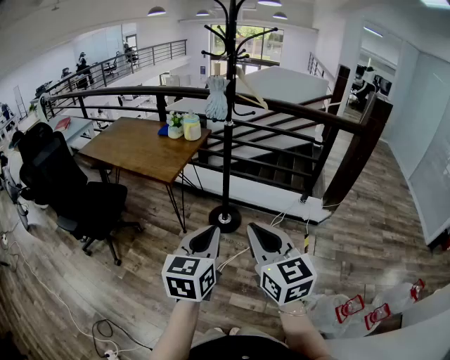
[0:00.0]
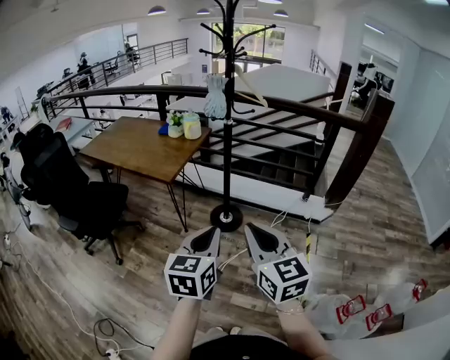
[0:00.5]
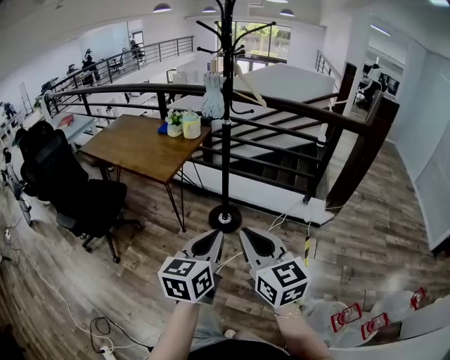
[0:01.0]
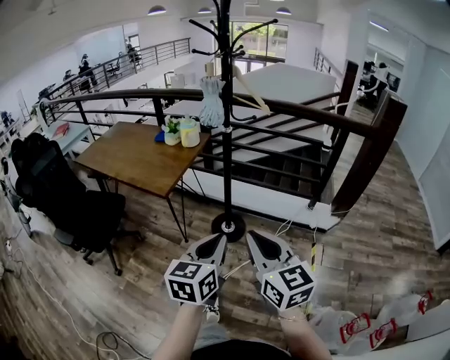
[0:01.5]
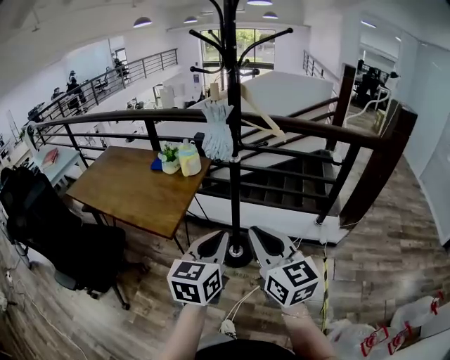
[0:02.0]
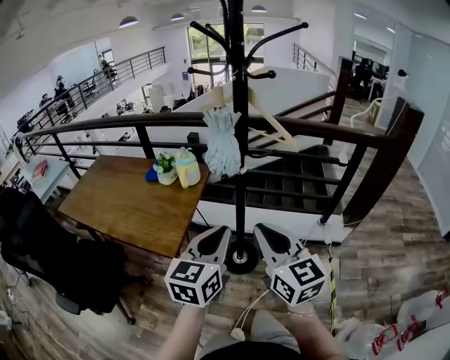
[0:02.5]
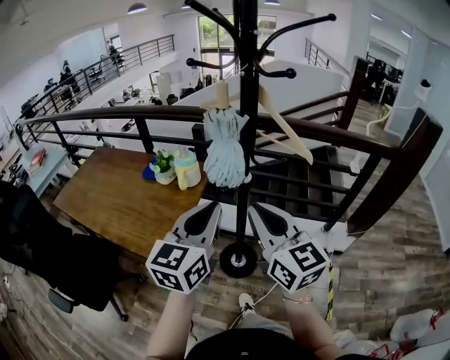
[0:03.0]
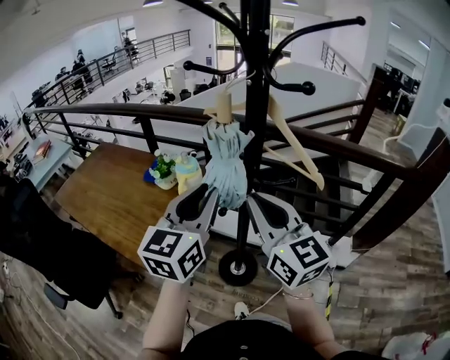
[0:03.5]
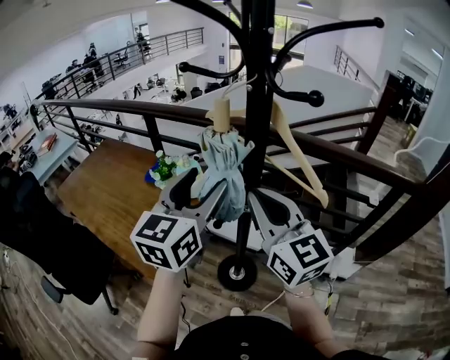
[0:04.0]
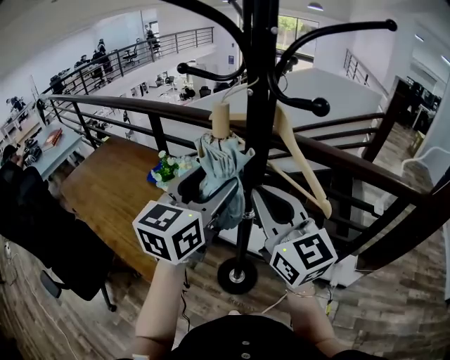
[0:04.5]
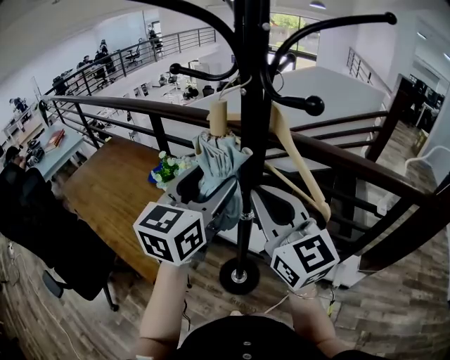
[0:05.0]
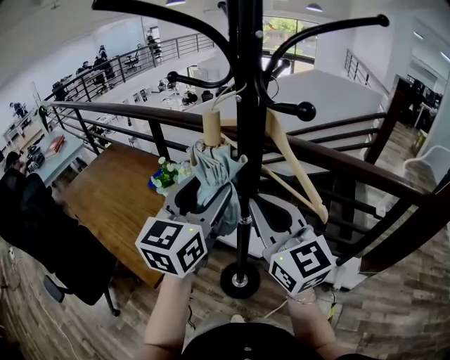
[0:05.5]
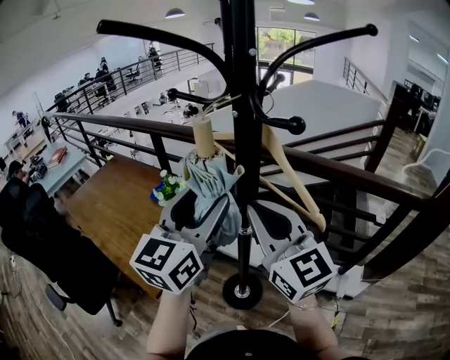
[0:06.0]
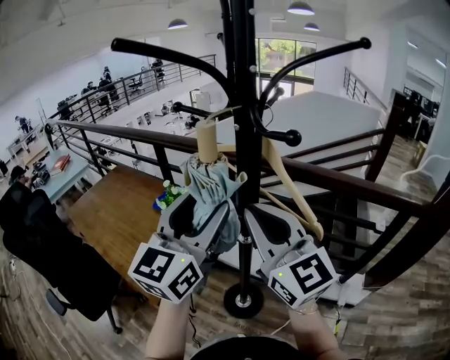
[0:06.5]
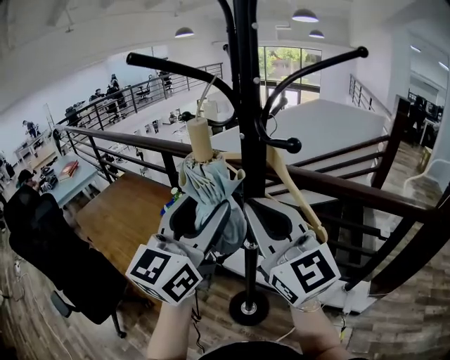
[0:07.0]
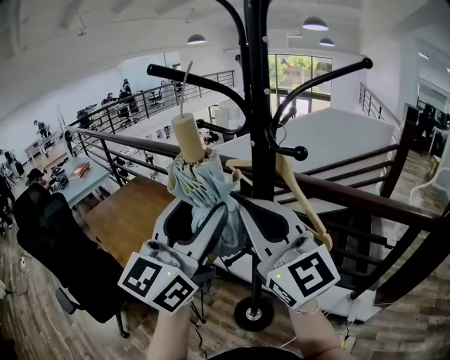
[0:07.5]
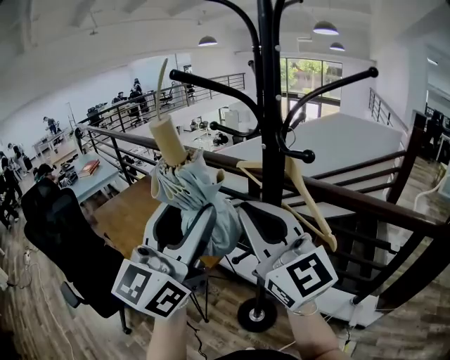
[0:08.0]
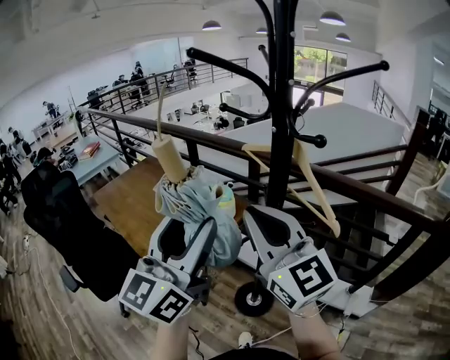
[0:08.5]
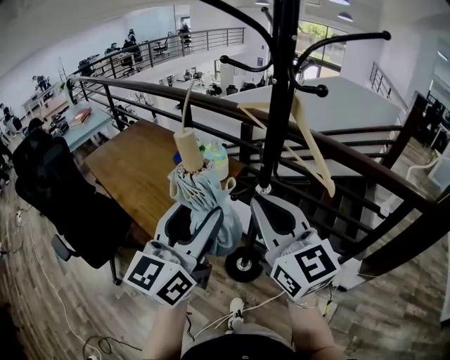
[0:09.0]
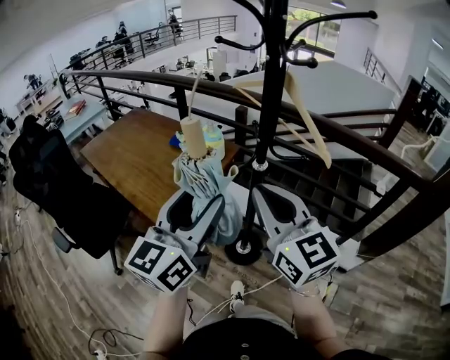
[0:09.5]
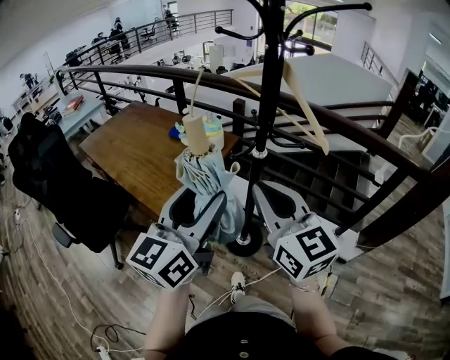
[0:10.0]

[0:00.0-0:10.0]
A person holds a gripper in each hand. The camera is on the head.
0:00.0 to 0:02.0: Both grippers travel together forward, about 25 cm.
0:02.0 to 0:04.0: The two grippers go some 35 cm forward. The left gripper opens its fingers.
0:04.0 to 0:06.0: There are only small adjustments of the grippers.
0:06.0 to 0:08.0: The right gripper moves upward and to the left, roughly 10 cm. The left gripper goes roughly 15 cm upward, backward and to the left.
0:08.0 to 0:10.0: The two grippers go roughly 20 cm downward and backward. The right gripper changes its angle by some 20 degrees. The left gripper turns by roughly 20 degrees.

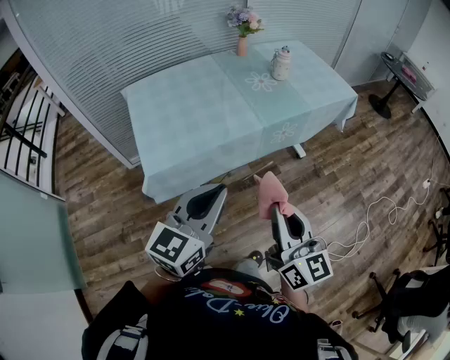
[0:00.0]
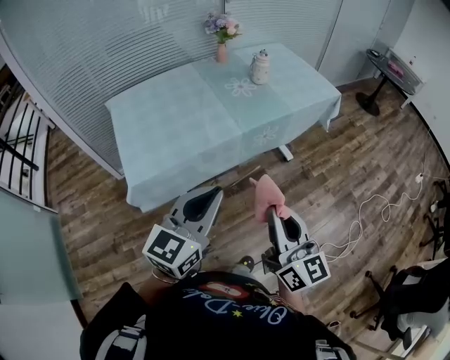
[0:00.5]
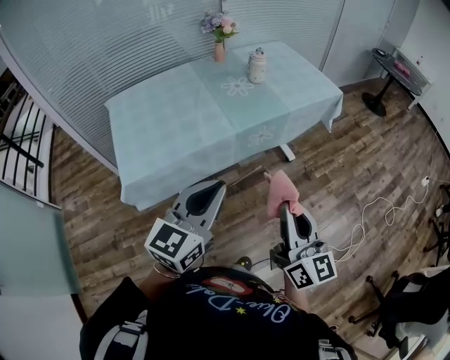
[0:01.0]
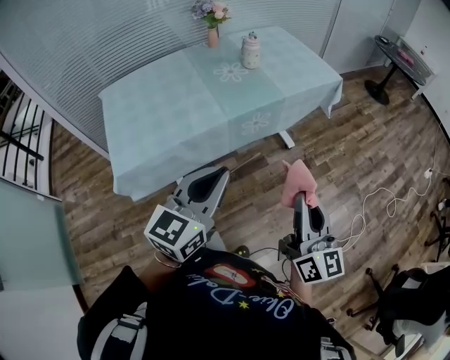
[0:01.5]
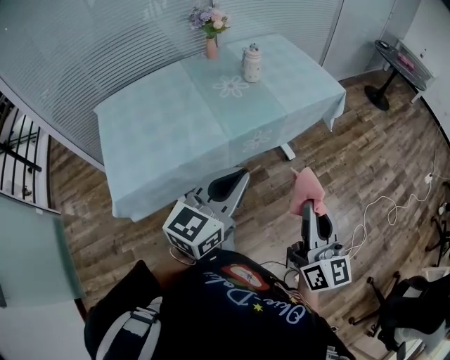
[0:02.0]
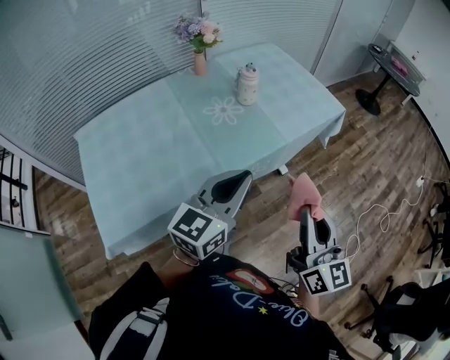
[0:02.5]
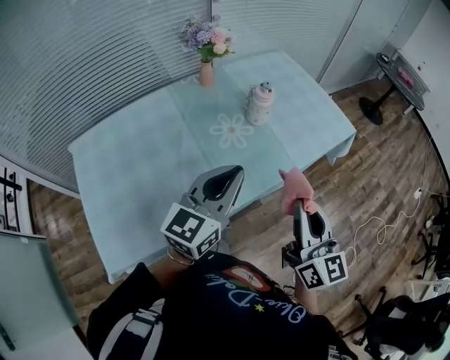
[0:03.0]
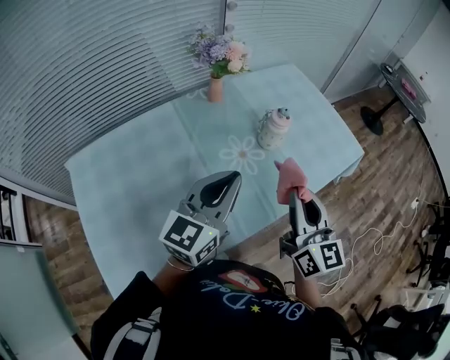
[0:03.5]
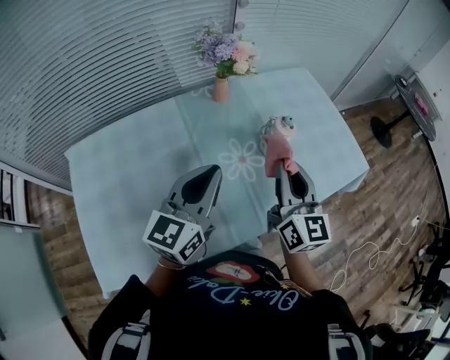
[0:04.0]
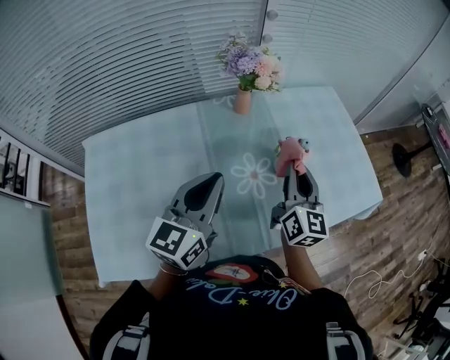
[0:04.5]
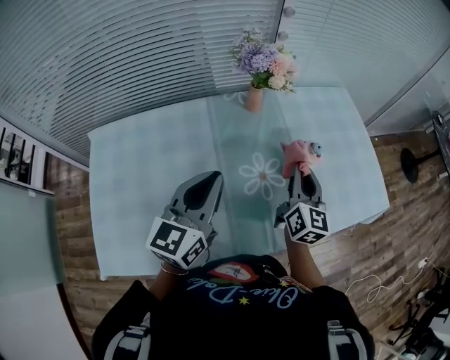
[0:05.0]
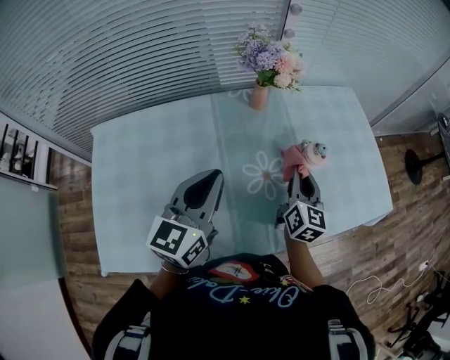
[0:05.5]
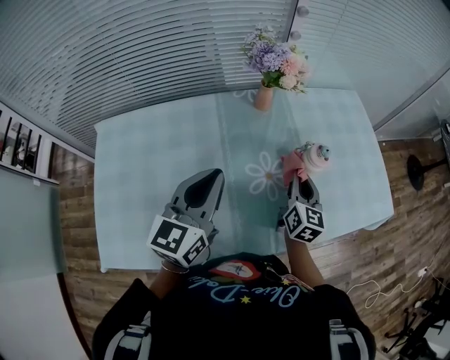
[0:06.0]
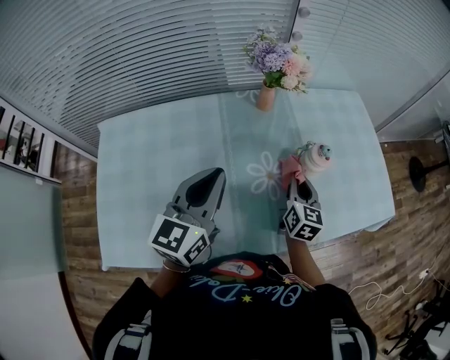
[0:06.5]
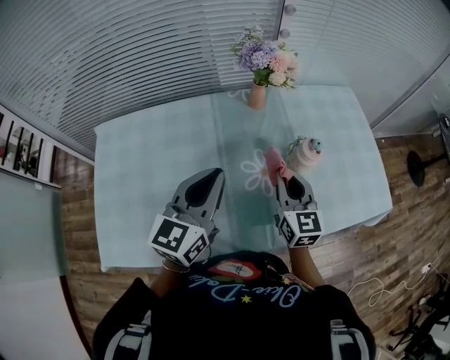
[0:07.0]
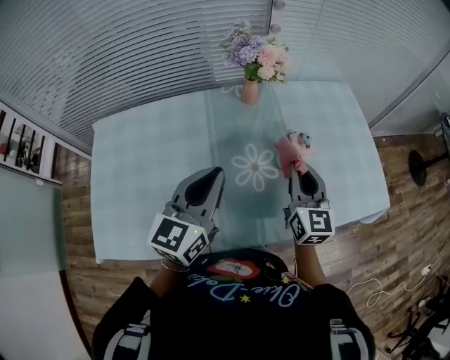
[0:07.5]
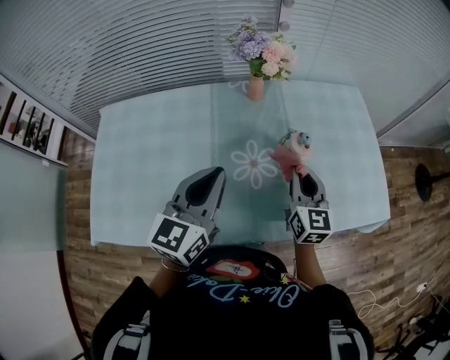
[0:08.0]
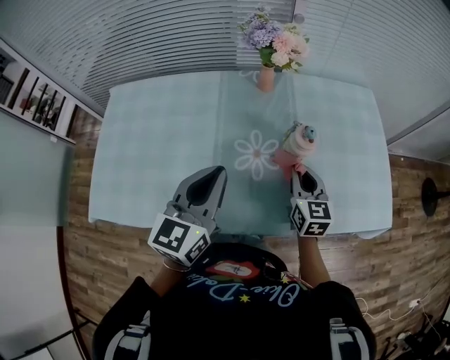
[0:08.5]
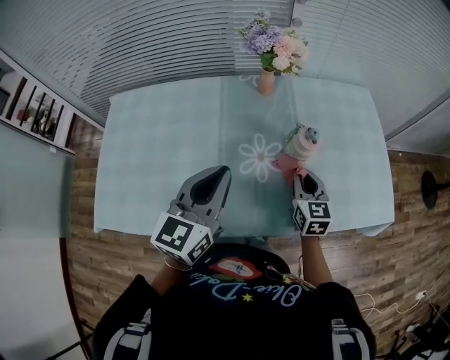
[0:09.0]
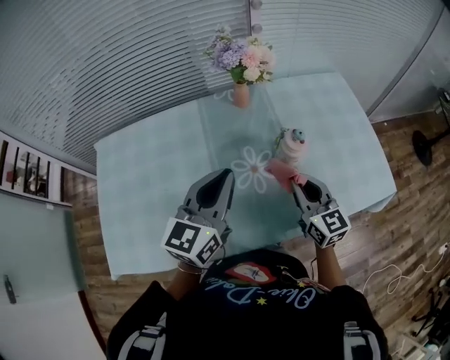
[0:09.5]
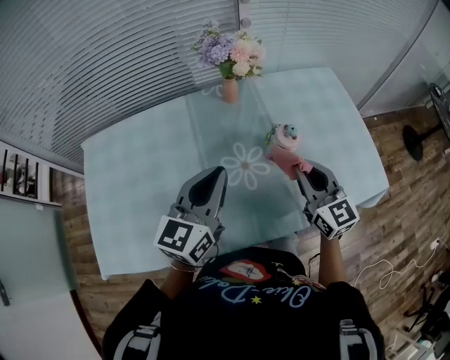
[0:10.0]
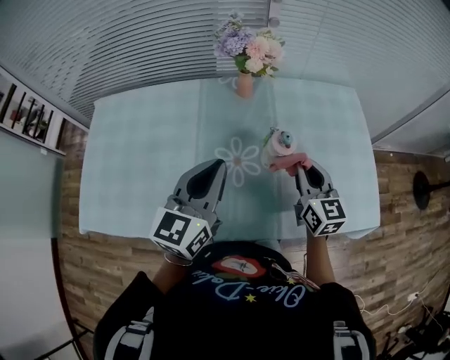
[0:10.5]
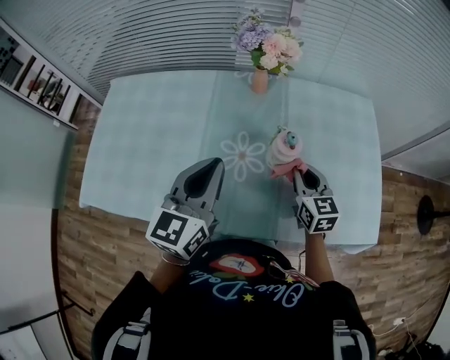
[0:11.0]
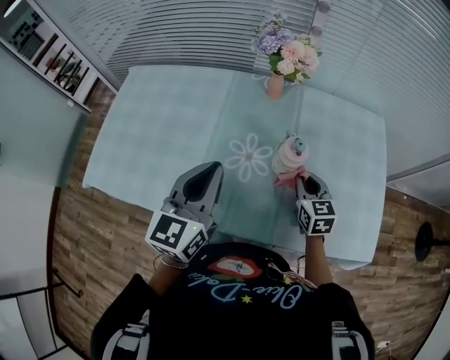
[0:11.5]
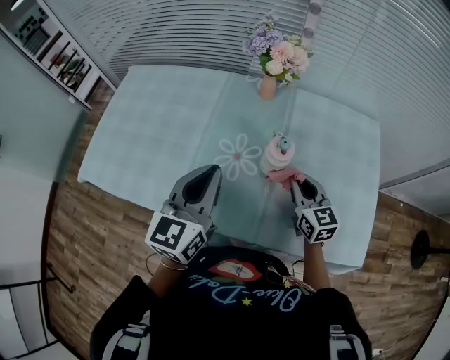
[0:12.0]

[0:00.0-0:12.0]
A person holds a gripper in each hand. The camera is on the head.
0:00.0 to 0:02.0: Both grippers move to the right and forward, some 20 cm.
0:02.0 to 0:04.0: The two grippers travel together, forward and to the left, roughly 50 cm.
0:04.0 to 0:06.0: The left gripper ends up approximately 5 cm from where it was. The right gripper travels downward and forward by some 15 cm.
0:06.0 to 0:08.0: The right gripper changes place by about 5 cm, and turns by roughly 20 degrees. The left gripper goes roughly 10 cm to the right.
0:08.0 to 0:10.0: The right gripper goes downward and returns, some 5 cm each way.
0:10.0 to 0:12.0: The right gripper shifts about 10 cm downward, and changes its angle by approximately 20 degrees. The left gripper ends up approximately 10 cm from where it was, and turns by approximately 30 degrees.

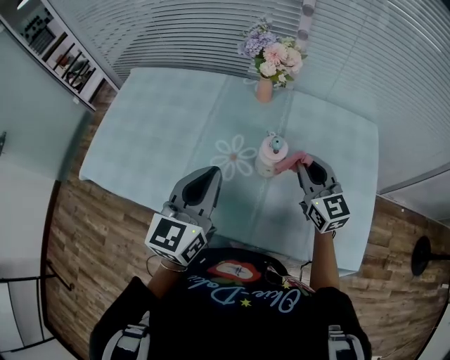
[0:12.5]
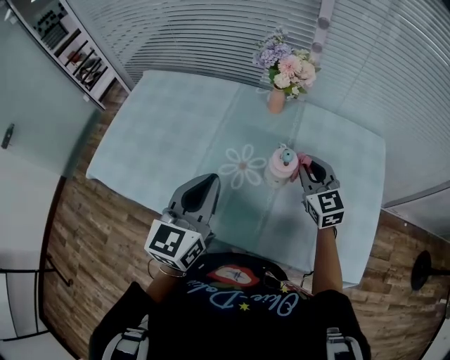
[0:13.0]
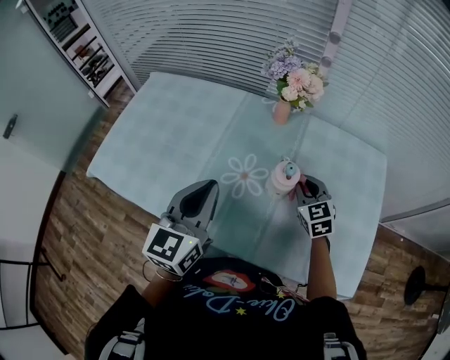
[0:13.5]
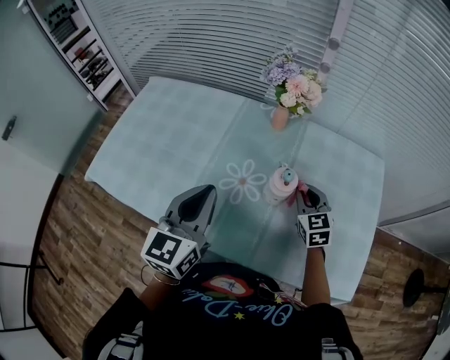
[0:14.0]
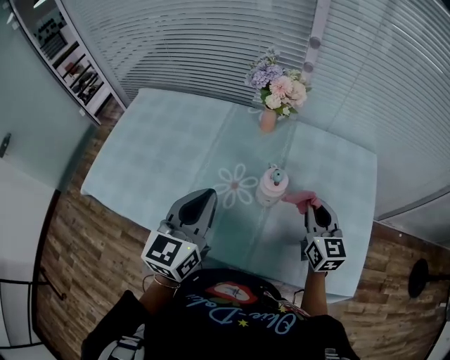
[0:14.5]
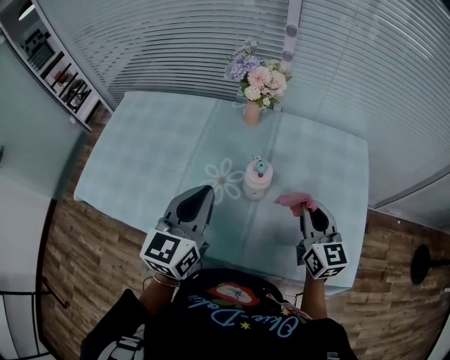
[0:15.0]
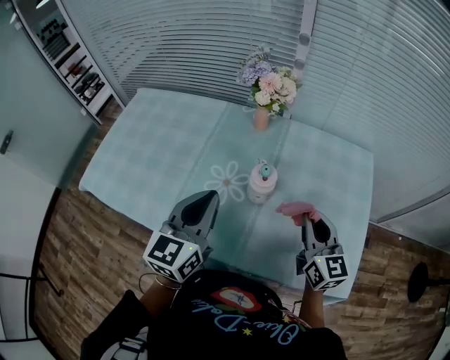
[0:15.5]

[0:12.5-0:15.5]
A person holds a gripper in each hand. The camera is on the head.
0:12.5 to 0:14.0: The right gripper moves downward, some 10 cm, and swivels approximately 20 degrees.
0:14.0 to 0:15.5: The left gripper heads to the right, covering some 5 cm. The right gripper shifts some 15 cm backward, upward and to the right, and rotates approximately 30 degrees.

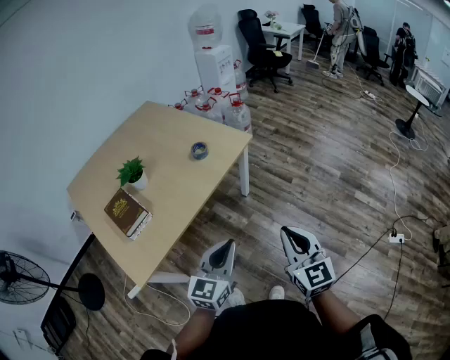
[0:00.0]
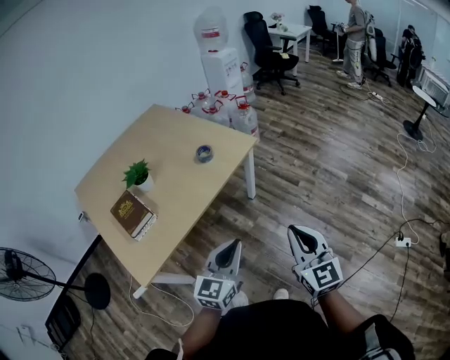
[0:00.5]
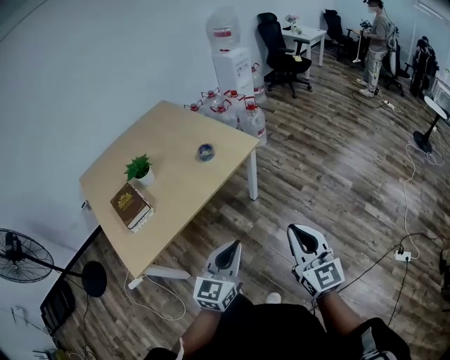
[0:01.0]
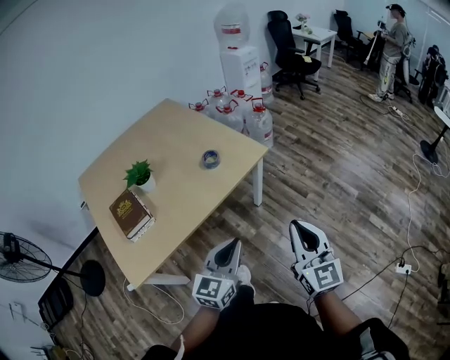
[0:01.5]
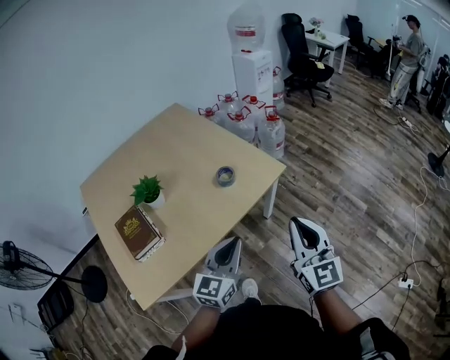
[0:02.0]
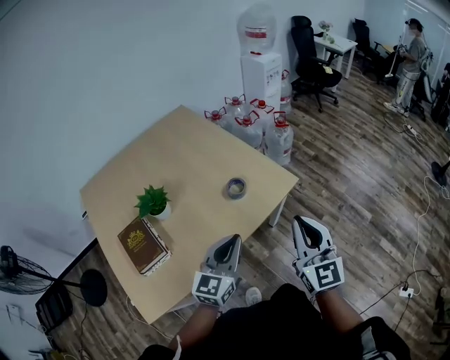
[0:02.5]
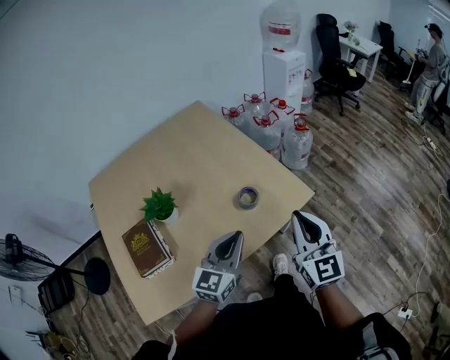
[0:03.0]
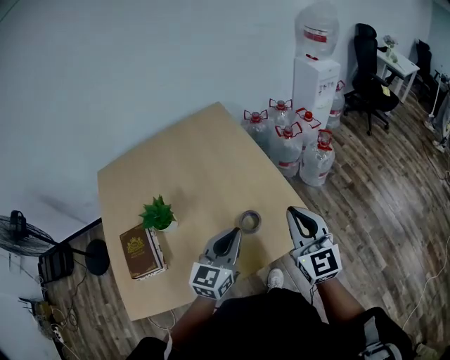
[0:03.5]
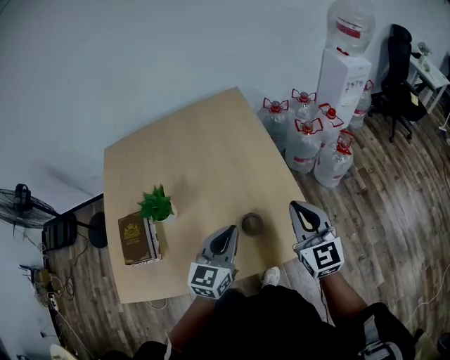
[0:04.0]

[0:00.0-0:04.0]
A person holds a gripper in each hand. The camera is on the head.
0:00.0 to 0:02.0: The grippers both shift forward by about 20 cm.
0:02.0 to 0:04.0: The right gripper changes place by roughly 40 cm, and turns by approximately 30 degrees. The left gripper moves about 35 cm, and turns by about 30 degrees.
